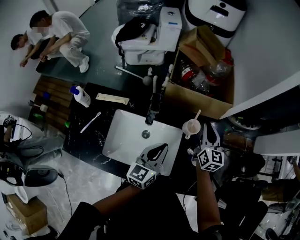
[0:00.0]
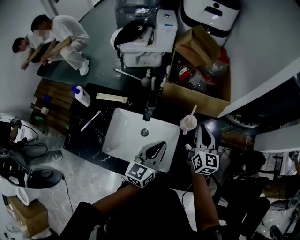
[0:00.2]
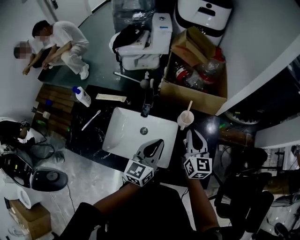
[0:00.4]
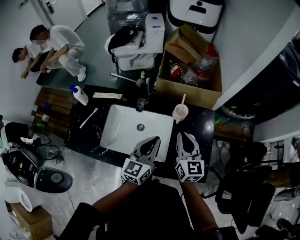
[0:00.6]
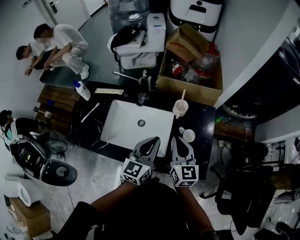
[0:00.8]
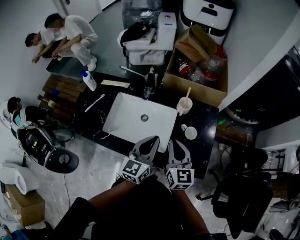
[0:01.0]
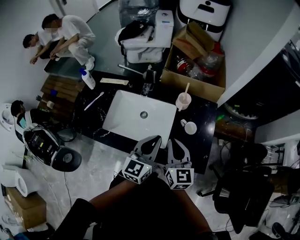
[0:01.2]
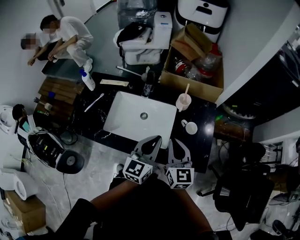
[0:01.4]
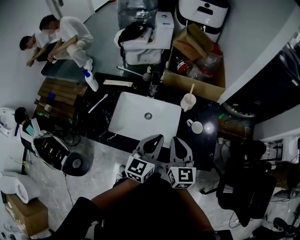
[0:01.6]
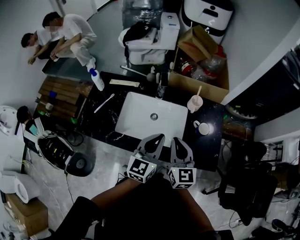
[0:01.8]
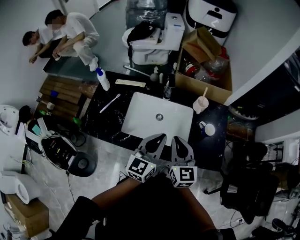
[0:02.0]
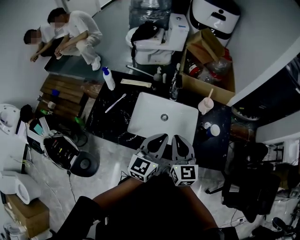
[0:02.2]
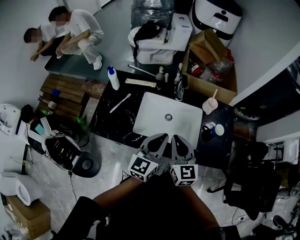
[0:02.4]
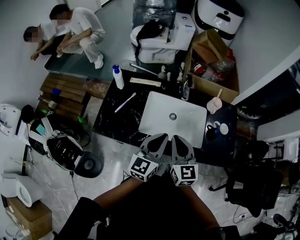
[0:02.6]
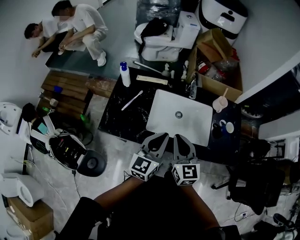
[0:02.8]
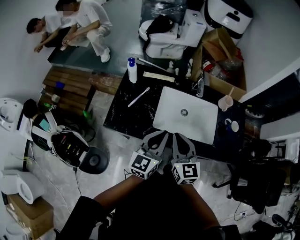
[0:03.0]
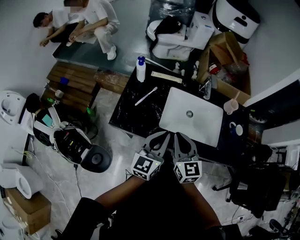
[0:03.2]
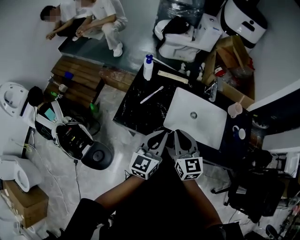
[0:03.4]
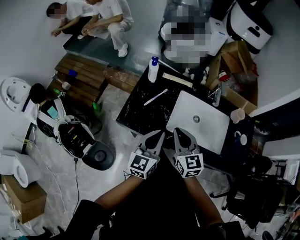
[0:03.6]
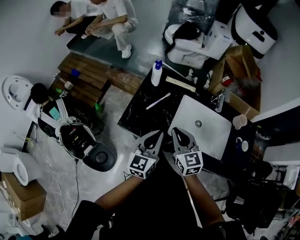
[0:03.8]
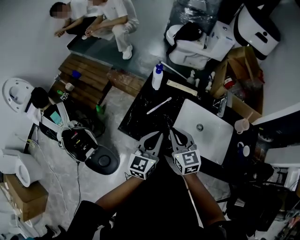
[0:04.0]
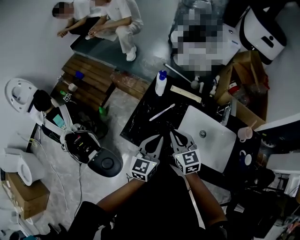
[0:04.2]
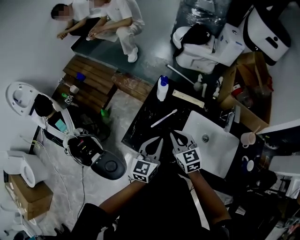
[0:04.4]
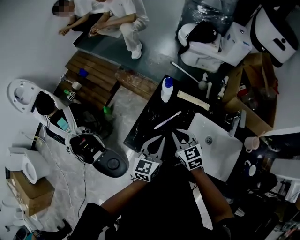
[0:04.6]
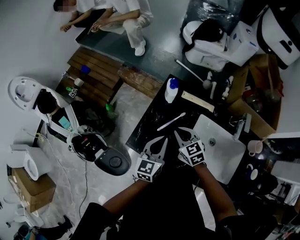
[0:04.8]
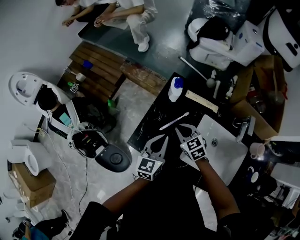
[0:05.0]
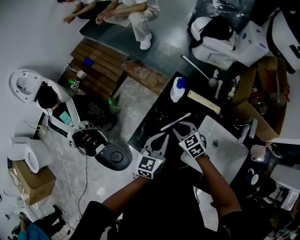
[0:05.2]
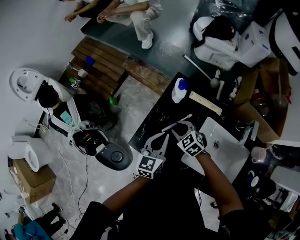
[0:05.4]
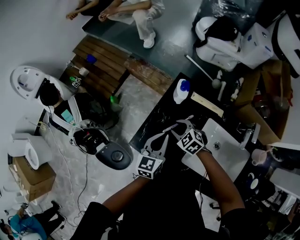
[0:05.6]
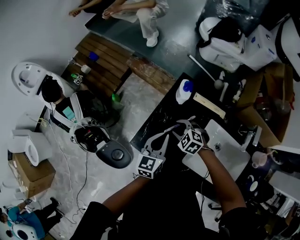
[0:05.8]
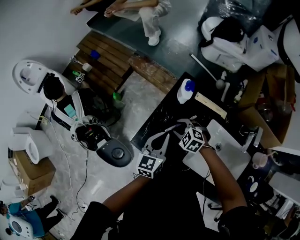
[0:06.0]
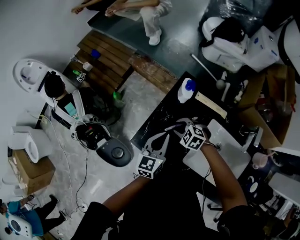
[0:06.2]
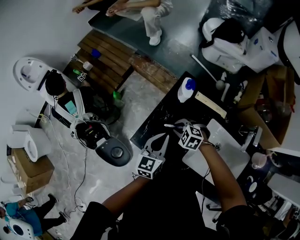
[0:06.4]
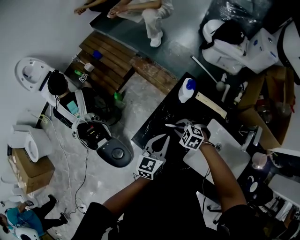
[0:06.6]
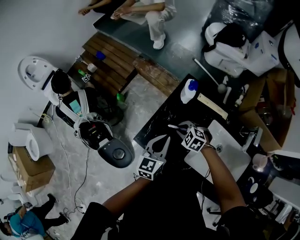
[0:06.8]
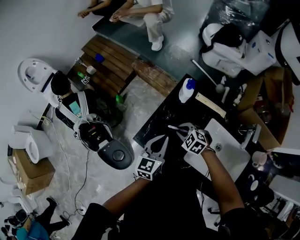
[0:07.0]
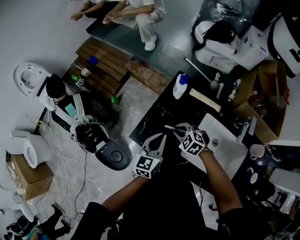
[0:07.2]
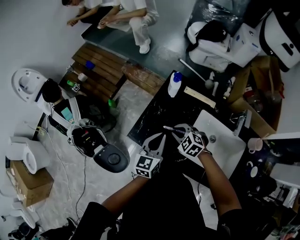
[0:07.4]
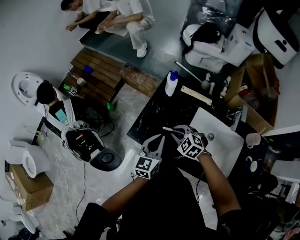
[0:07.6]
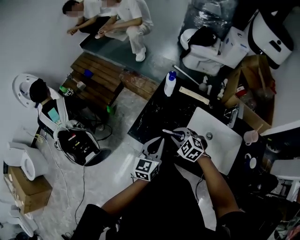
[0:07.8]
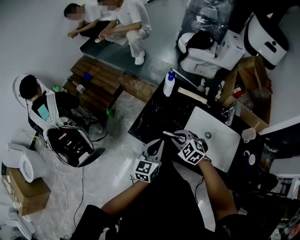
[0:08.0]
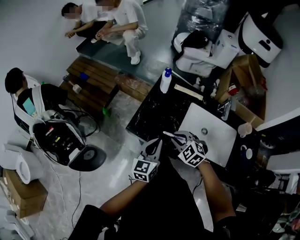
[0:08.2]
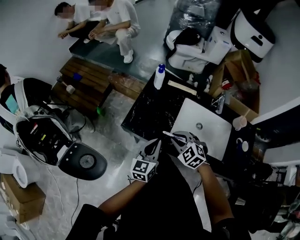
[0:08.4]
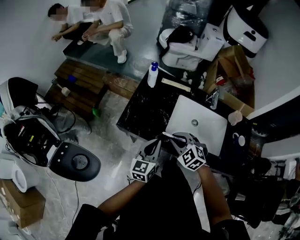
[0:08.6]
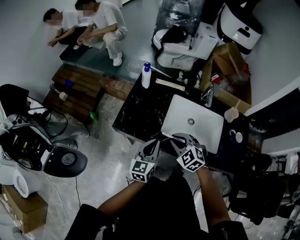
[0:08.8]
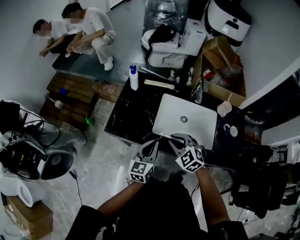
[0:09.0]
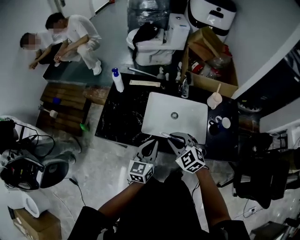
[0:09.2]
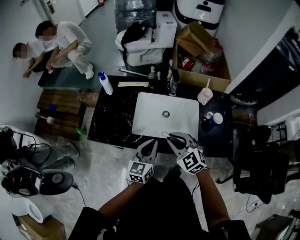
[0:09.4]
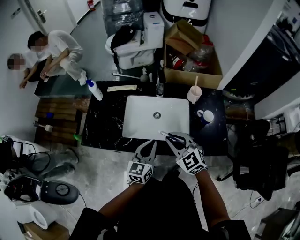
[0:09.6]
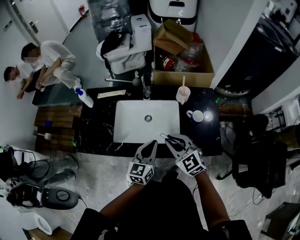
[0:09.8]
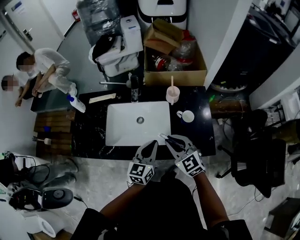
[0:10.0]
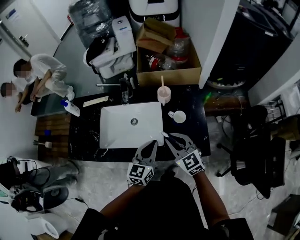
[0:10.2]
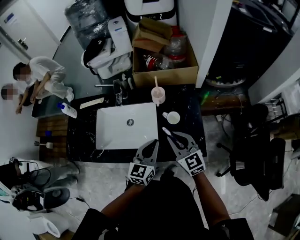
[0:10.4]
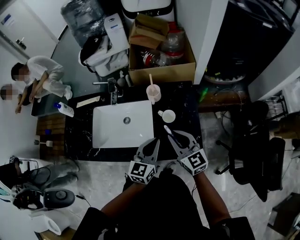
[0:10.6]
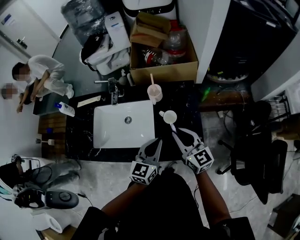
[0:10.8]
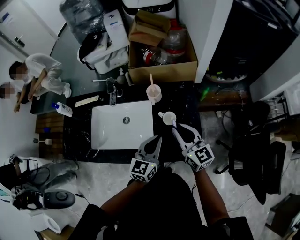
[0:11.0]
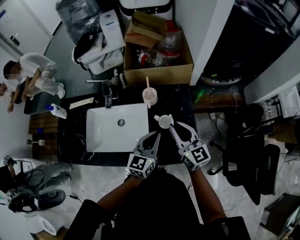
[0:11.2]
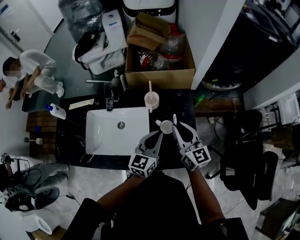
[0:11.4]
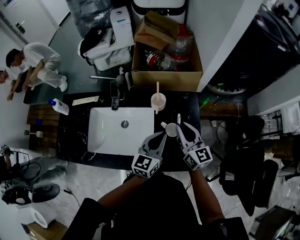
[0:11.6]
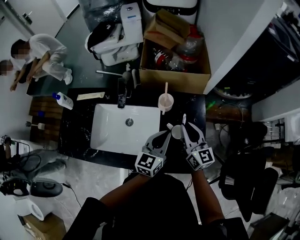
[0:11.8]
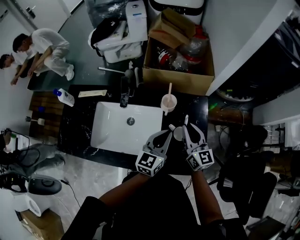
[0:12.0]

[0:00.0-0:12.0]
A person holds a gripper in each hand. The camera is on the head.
0:00.0 to 0:01.6: The right gripper shifts about 30 cm backward; the left gripper shifts roughly 15 cm backward.
0:01.6 to 0:03.0: Both grippers travel together to the left, roughly 25 cm.
0:03.0 to 0:04.4: Both grippers travel together forward, to the left and downward, some 20 cm. The left gripper swivels some 20 degrees. The right gripper turns by approximately 30 degrees.
0:04.4 to 0:06.0: The left gripper is displaced forward and downward by about 10 cm; the right gripper travels downward and forward by roughly 15 cm, points its fingers about 30 degrees further downward, and opens.
0:06.0 to 0:07.6: The right gripper moves backward and upward, approximately 10 cm, and closes up; the left gripper goes approximately 10 cm backward.
0:07.6 to 0:09.0: The right gripper shifts roughly 20 cm backward, to the right and upward, and turns by some 20 degrees. The left gripper travels backward and to the right by some 15 cm.
0:09.0 to 0:10.4: The two grippers travel together, to the right, about 40 cm. The right gripper changes its angle by approximately 40 degrees. The left gripper rotates some 20 degrees.
0:10.4 to 0:12.0: Both grippers travel together forward, approximately 15 cm. The right gripper turns by approximately 20 degrees.

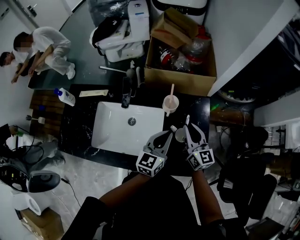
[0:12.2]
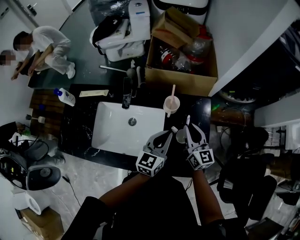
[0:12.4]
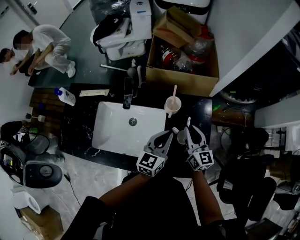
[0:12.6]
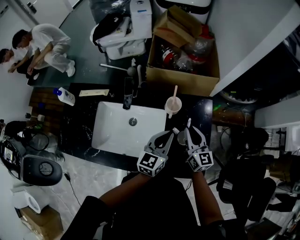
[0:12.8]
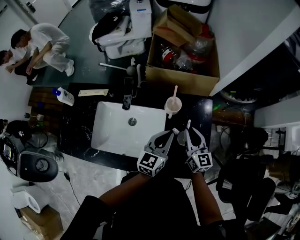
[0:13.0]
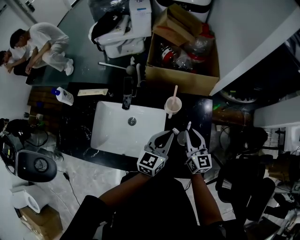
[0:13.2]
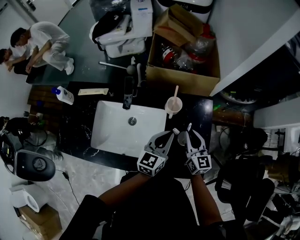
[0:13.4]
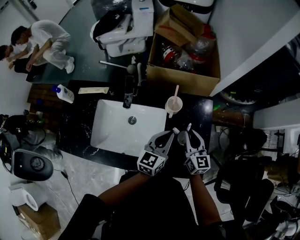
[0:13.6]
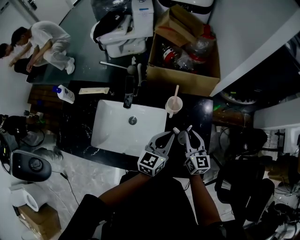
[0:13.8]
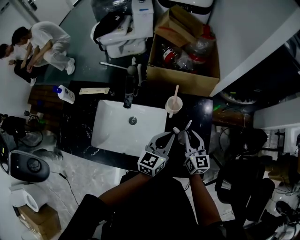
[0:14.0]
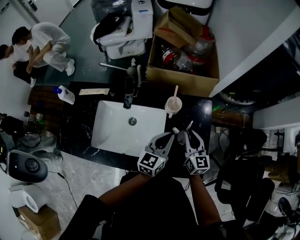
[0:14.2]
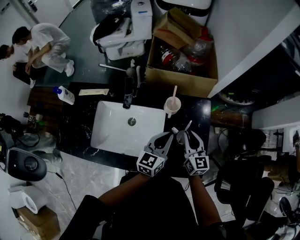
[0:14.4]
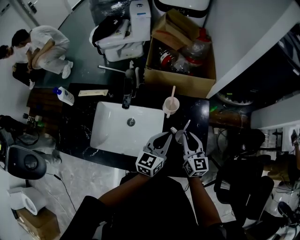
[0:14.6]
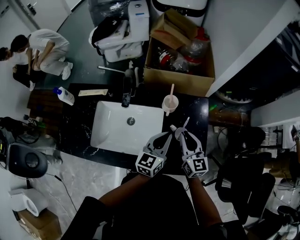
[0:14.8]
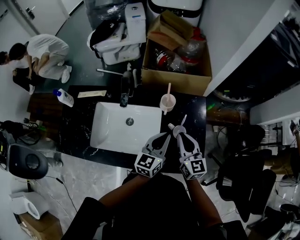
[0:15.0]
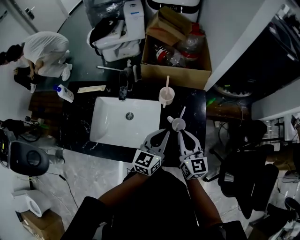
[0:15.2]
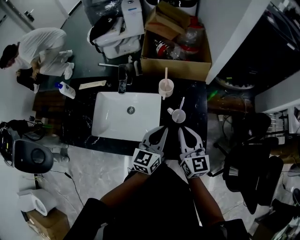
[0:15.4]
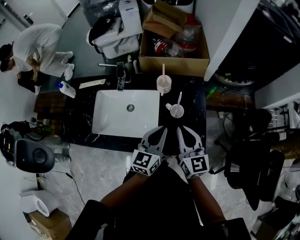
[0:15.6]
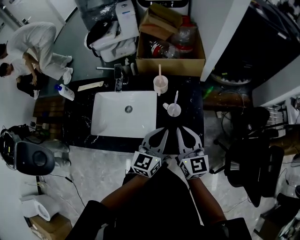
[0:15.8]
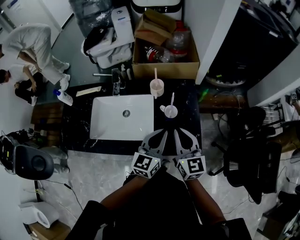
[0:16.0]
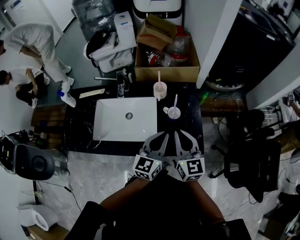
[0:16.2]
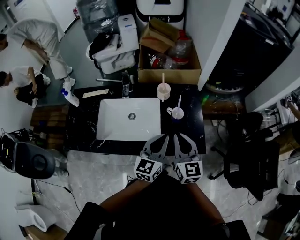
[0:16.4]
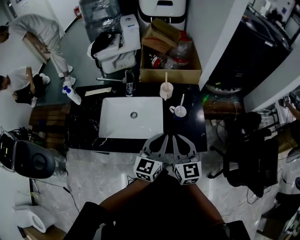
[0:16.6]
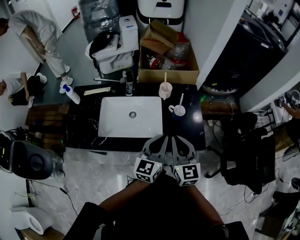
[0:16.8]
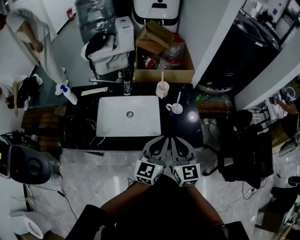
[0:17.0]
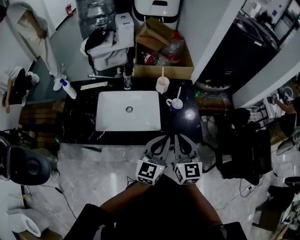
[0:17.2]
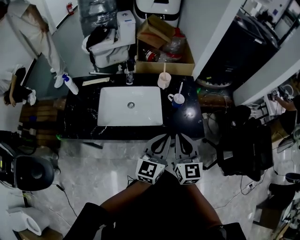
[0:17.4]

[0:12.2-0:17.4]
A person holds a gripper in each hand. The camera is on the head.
0:12.2 to 0:14.0: The right gripper ends up approximately 5 cm from where it was.
0:14.0 to 0:15.6: The right gripper moves backward and upward, roughly 15 cm. The left gripper is displaced backward by about 10 cm.
0:15.6 to 0:17.4: Both grippers travel together backward, approximately 15 cm.

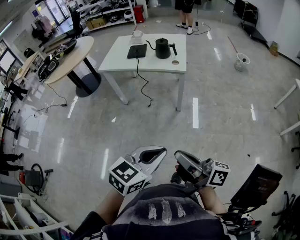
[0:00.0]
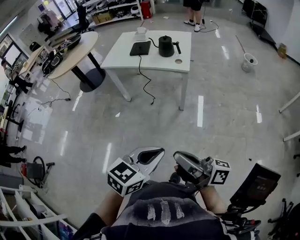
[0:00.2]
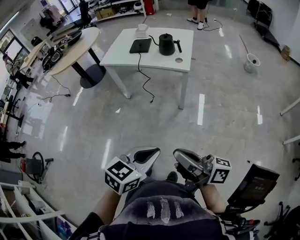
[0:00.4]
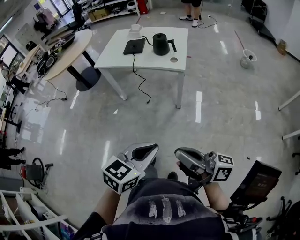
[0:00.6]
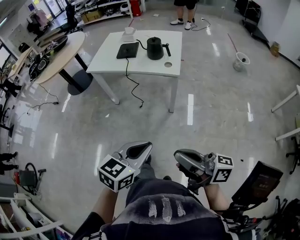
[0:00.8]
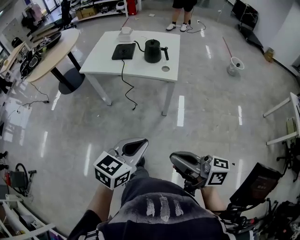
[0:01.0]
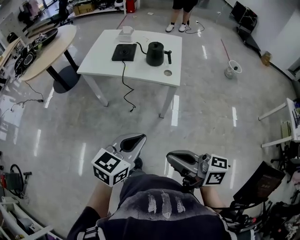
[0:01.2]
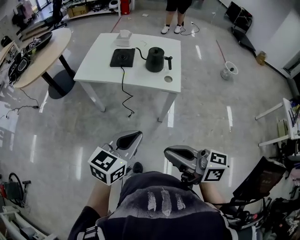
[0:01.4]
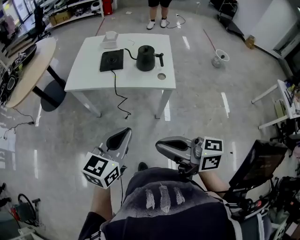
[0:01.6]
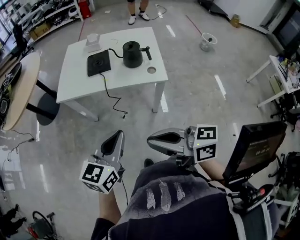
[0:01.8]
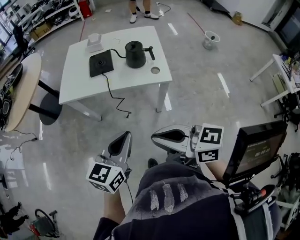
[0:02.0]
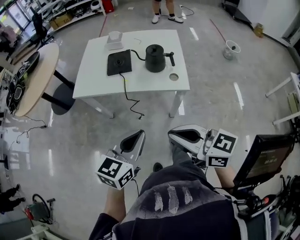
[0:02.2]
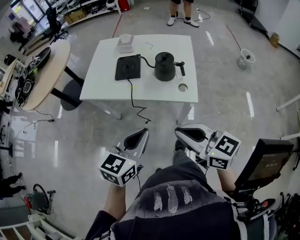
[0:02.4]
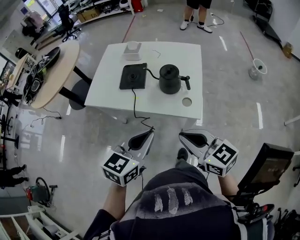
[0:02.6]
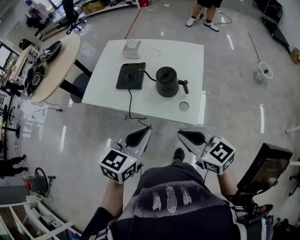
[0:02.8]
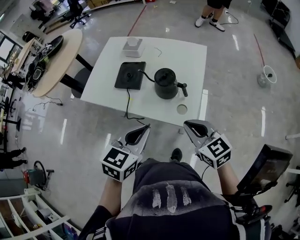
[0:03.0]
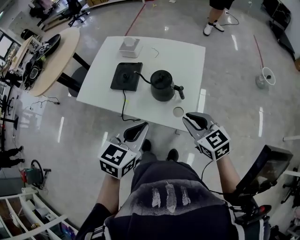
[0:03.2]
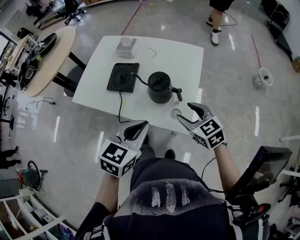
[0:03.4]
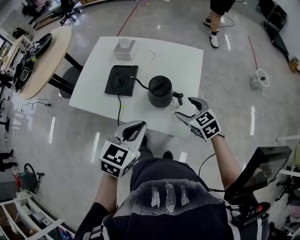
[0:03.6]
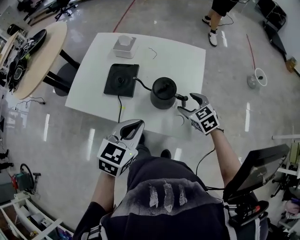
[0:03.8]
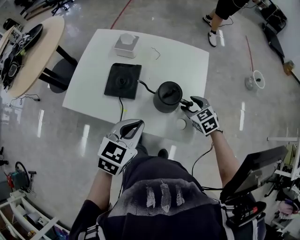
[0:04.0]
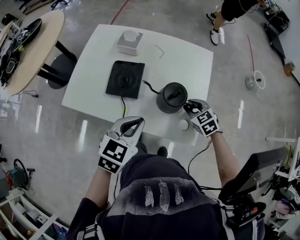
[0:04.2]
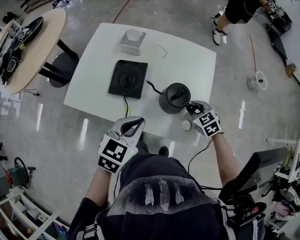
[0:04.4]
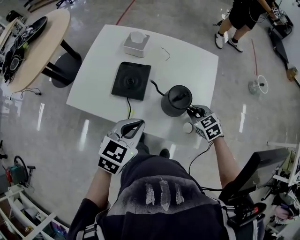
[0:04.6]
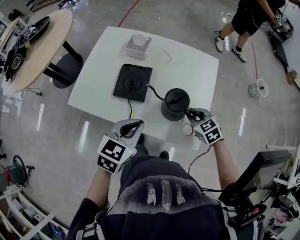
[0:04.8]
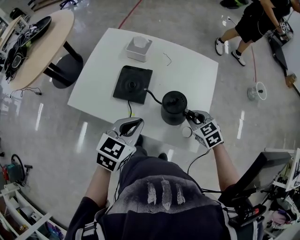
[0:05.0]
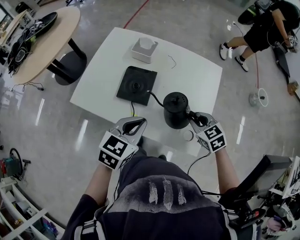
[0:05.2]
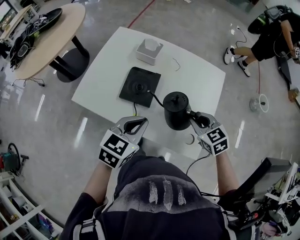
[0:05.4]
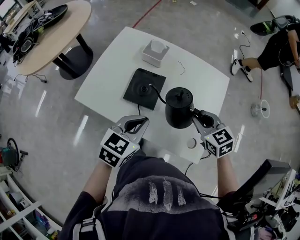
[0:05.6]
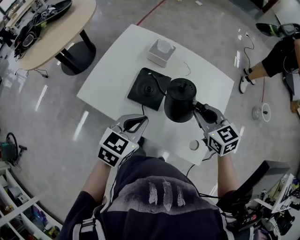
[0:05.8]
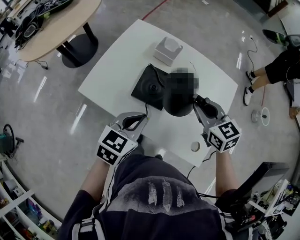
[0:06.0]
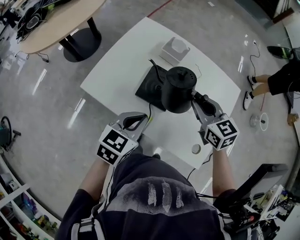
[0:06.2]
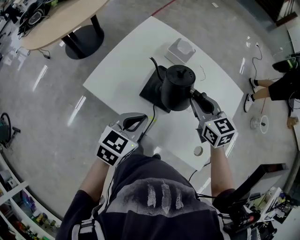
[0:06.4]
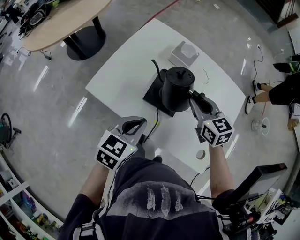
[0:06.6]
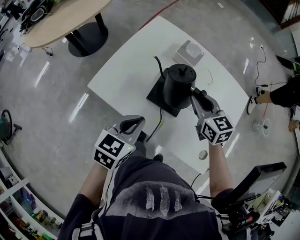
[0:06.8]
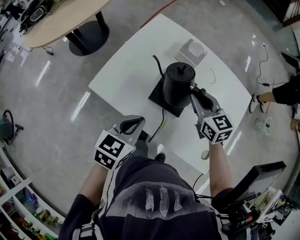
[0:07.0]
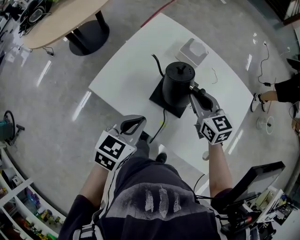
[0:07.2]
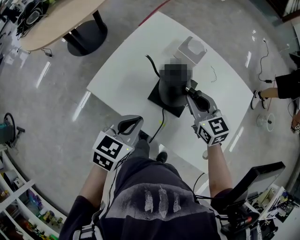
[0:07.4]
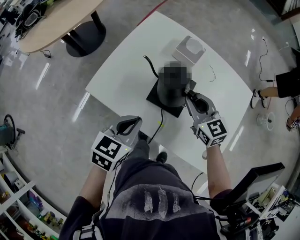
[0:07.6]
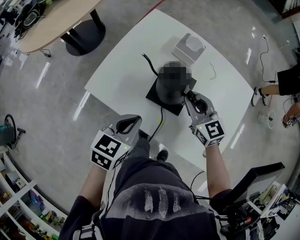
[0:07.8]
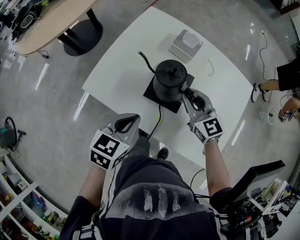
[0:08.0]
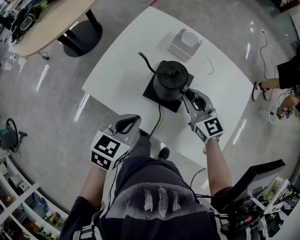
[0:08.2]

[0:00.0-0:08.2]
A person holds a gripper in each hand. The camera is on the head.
0:00.0 to 0:01.6: The two grippers go about 35 cm forward. The right gripper swivels some 30 degrees.
0:01.6 to 0:03.2: The grippers both shift forward and to the right by approximately 35 cm. The right gripper swivels some 40 degrees.
0:03.2 to 0:05.0: The right gripper goes some 20 cm forward and downward, turns by roughly 20 degrees, and opens, then closes again. Meanwhile the left gripper travels forward and to the left by about 15 cm.
0:05.0 to 0:06.6: The right gripper goes about 25 cm to the left, forward and upward, and changes its angle by some 20 degrees. The left gripper shifts some 10 cm to the left.
0:06.6 to 0:08.2: The right gripper moves approximately 5 cm.
